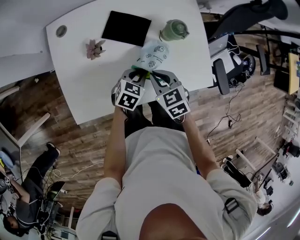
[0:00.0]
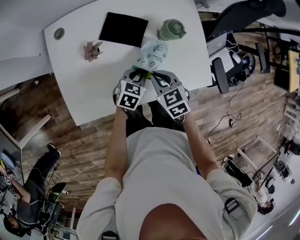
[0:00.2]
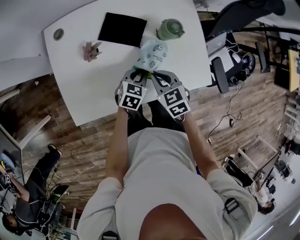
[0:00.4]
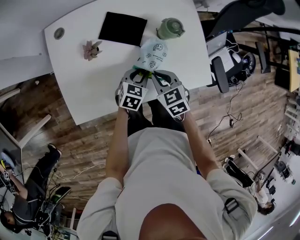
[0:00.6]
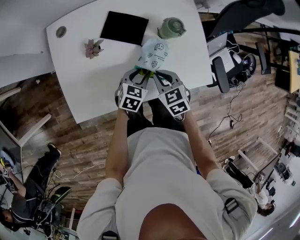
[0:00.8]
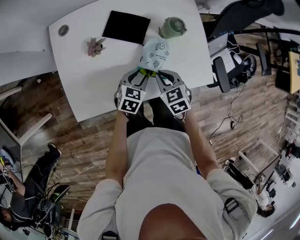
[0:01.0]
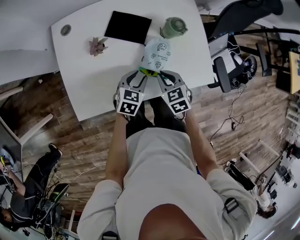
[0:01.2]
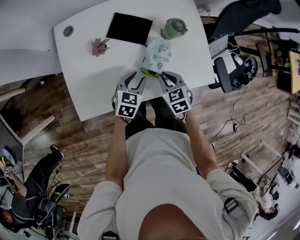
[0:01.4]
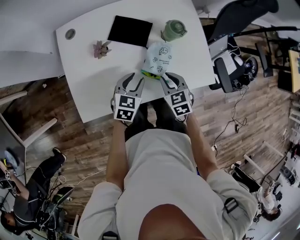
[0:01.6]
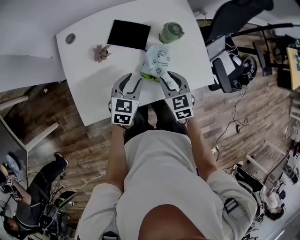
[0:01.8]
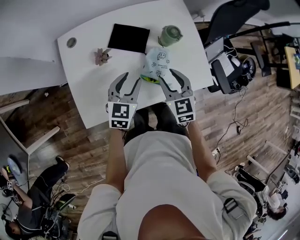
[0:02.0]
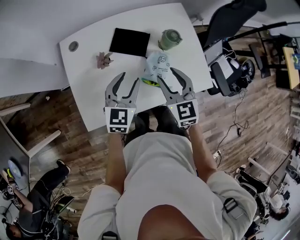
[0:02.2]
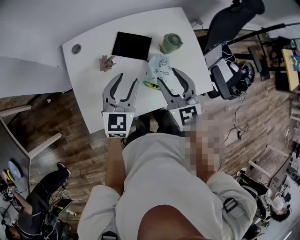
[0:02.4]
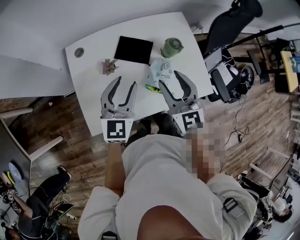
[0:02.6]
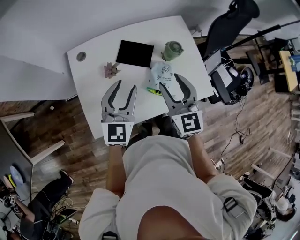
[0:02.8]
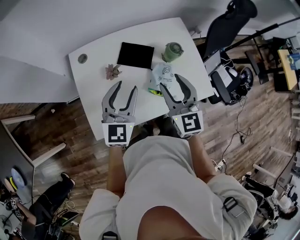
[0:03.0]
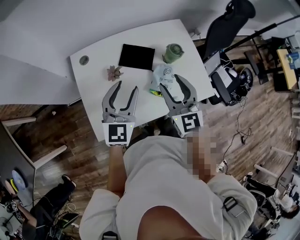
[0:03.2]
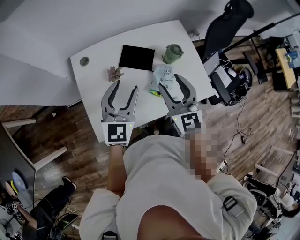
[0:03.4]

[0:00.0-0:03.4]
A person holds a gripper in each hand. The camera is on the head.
0:00.0 to 0:01.6: The right gripper moves some 5 cm. Meanwhile the left gripper moves about 5 cm, and opens its fingers.
0:01.6 to 0:03.4: The right gripper is displaced upward by roughly 25 cm, angles its fingers upward, by approximately 40 degrees, and opens, while the left gripper moves upward and to the left, approximately 25 cm, and points its fingers approximately 30 degrees further upward.

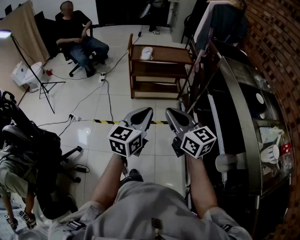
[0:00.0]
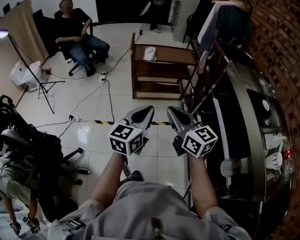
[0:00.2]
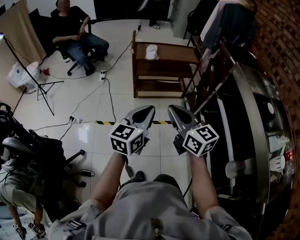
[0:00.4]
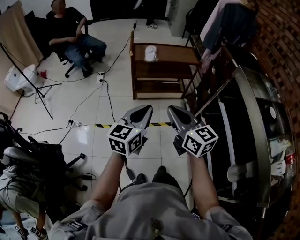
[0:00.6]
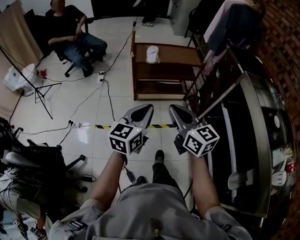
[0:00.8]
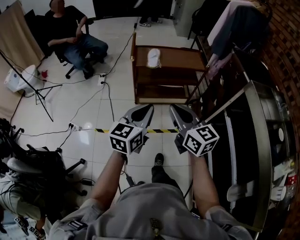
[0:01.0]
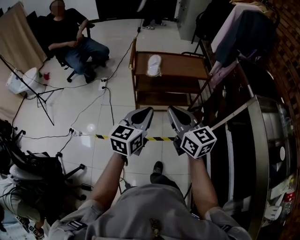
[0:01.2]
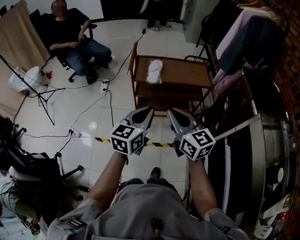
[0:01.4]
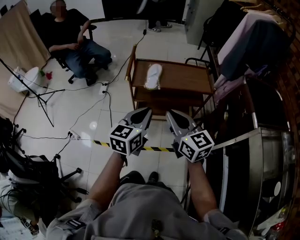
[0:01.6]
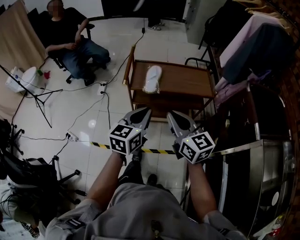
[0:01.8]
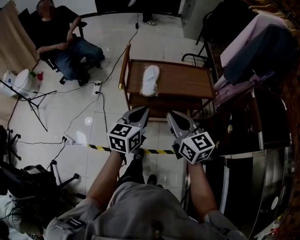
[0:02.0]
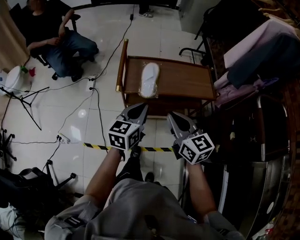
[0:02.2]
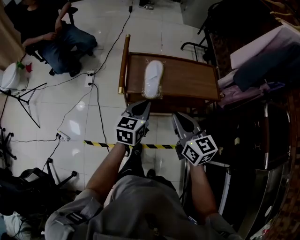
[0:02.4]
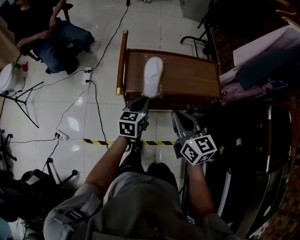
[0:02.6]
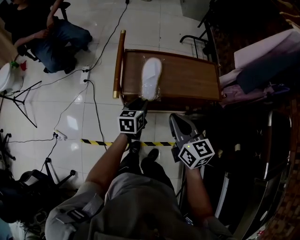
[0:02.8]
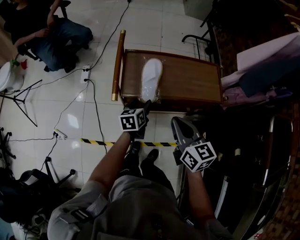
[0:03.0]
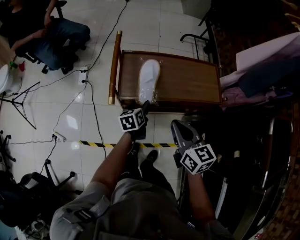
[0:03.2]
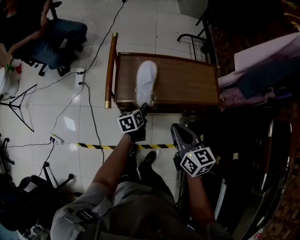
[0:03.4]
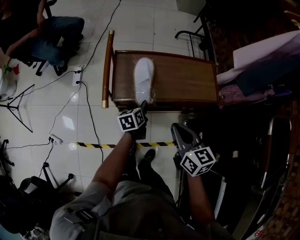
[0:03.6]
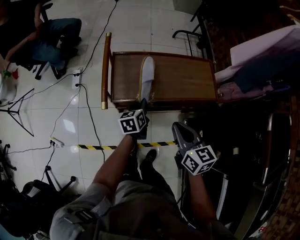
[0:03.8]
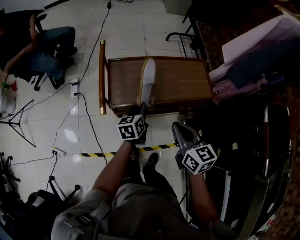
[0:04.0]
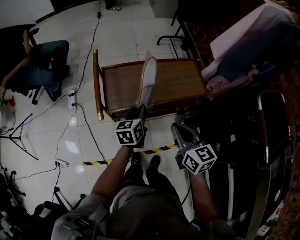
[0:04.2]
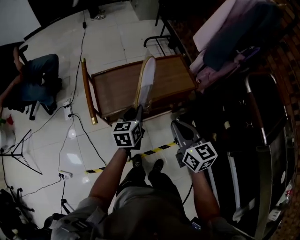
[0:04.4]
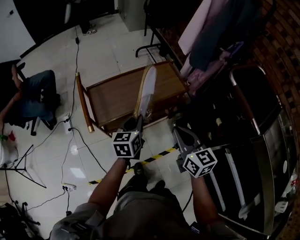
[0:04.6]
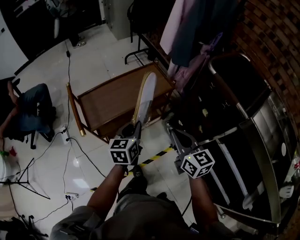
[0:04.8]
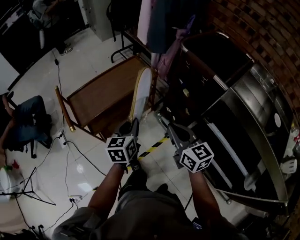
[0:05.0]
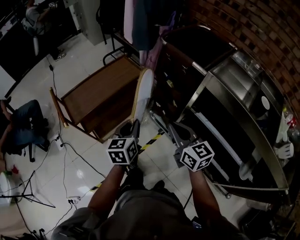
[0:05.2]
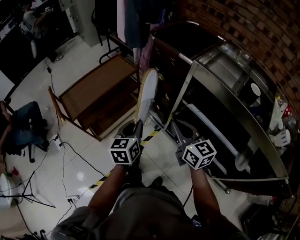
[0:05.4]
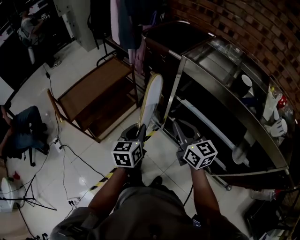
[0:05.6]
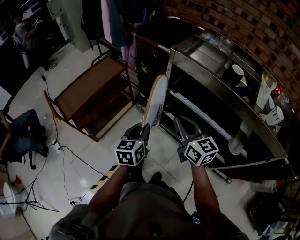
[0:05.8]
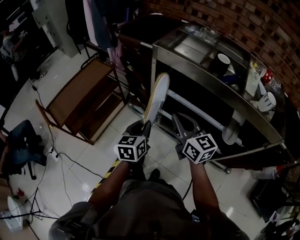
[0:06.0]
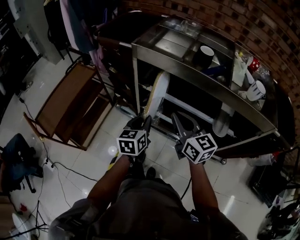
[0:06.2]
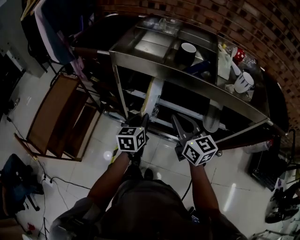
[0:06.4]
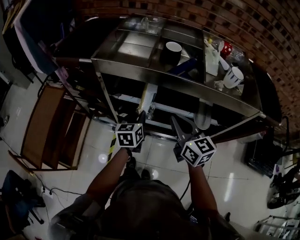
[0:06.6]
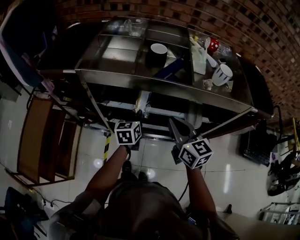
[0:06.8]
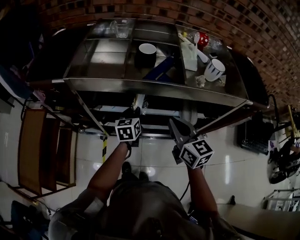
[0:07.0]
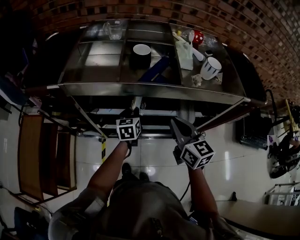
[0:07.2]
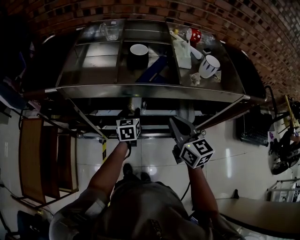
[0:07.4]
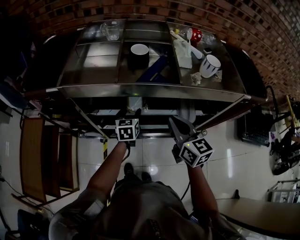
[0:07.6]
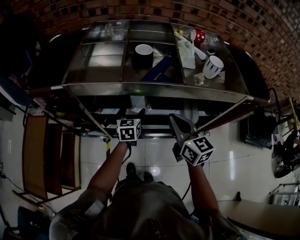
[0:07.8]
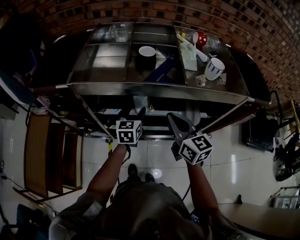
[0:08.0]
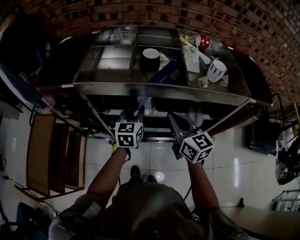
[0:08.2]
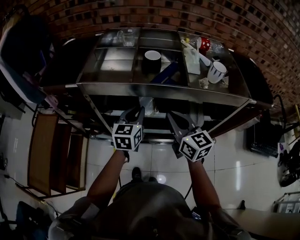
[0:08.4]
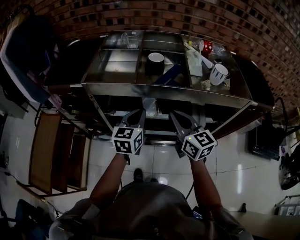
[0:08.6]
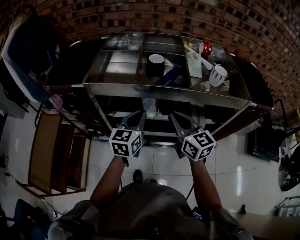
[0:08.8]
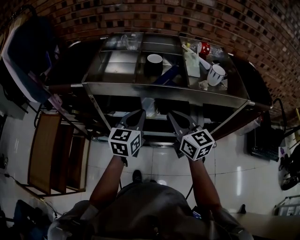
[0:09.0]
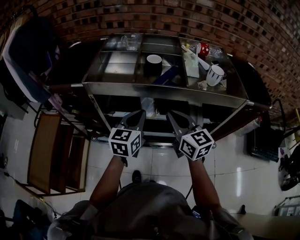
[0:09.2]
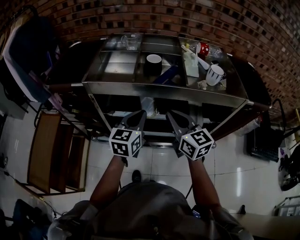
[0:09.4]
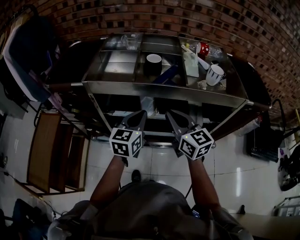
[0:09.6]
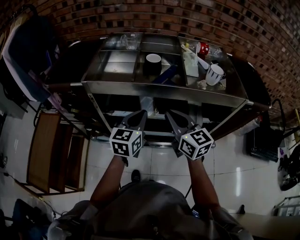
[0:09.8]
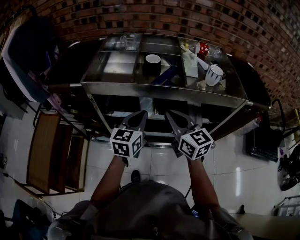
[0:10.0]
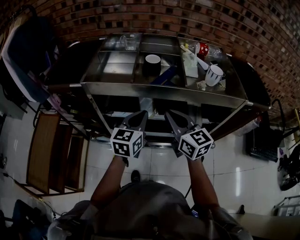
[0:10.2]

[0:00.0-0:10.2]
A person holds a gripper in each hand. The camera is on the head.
0:00.0 to 0:01.4: Both grippers travel together forward, approximately 35 cm.
0:01.4 to 0:03.0: Both grippers travel together forward and downward, about 35 cm. The left gripper changes its angle by roughly 30 degrees, and opens its fingers.
0:03.0 to 0:04.4: The left gripper goes roughly 15 cm upward and to the right, changes its angle by some 20 degrees, and closes its fingers. Meanwhile the right gripper heads to the right, covering approximately 10 cm.
0:04.4 to 0:05.8: The pair of grippers is taken roughly 50 cm. The right gripper turns by approximately 30 degrees. The left gripper changes its angle by about 40 degrees.
0:05.8 to 0:07.2: The left gripper shifts by roughly 35 cm, and rotates about 30 degrees. Meanwhile the right gripper shifts by approximately 25 cm, and changes its angle by about 40 degrees.
0:07.2 to 0:08.8: The right gripper moves to the left, approximately 5 cm, while the left gripper is displaced upward and backward by about 20 cm, and opens, then closes once more.
0:08.8 to 0:10.2: There are only small adjustments of the grippers.

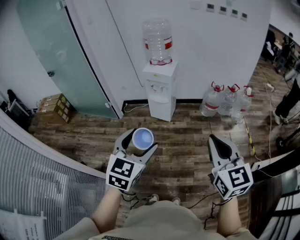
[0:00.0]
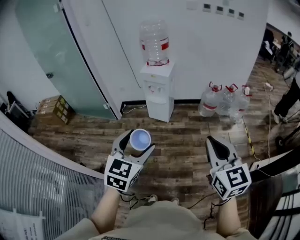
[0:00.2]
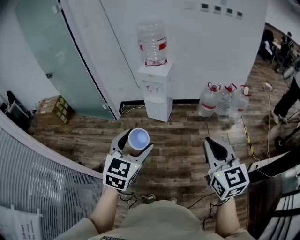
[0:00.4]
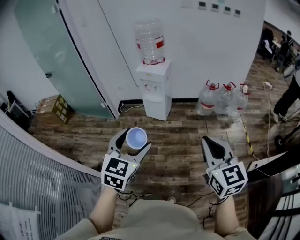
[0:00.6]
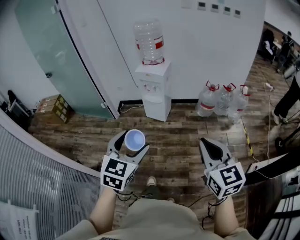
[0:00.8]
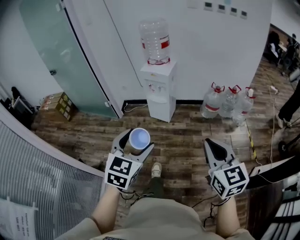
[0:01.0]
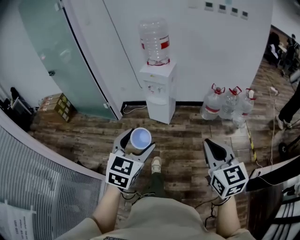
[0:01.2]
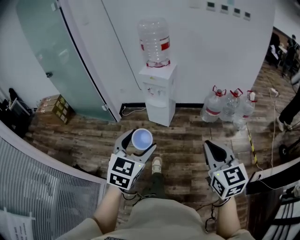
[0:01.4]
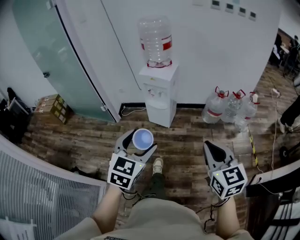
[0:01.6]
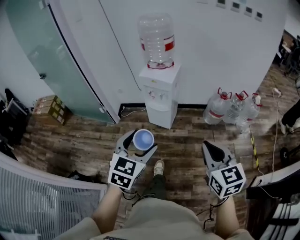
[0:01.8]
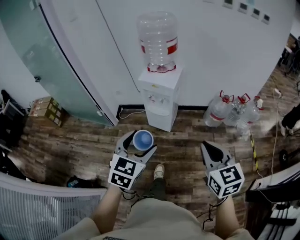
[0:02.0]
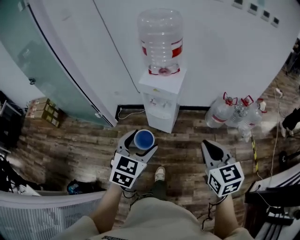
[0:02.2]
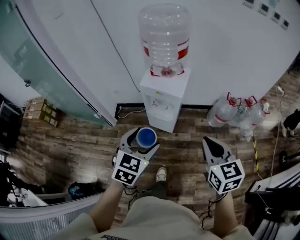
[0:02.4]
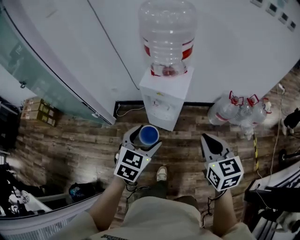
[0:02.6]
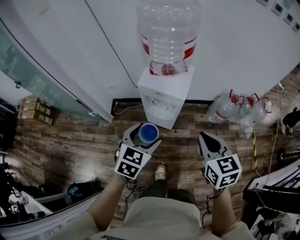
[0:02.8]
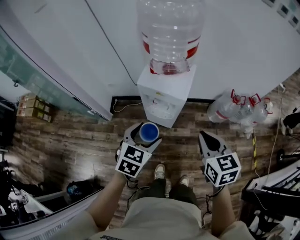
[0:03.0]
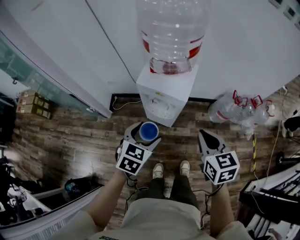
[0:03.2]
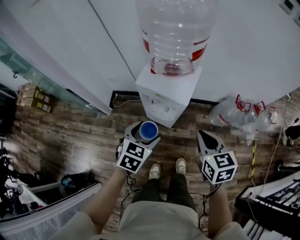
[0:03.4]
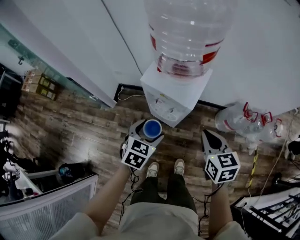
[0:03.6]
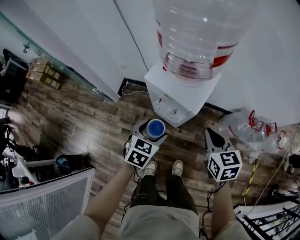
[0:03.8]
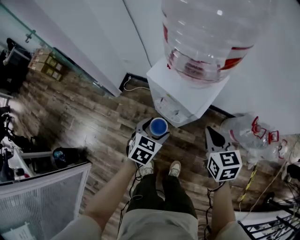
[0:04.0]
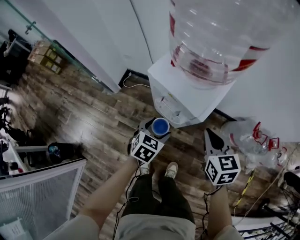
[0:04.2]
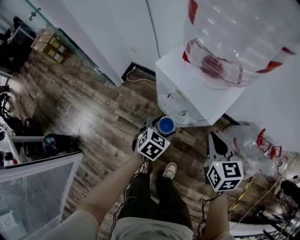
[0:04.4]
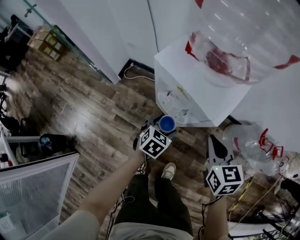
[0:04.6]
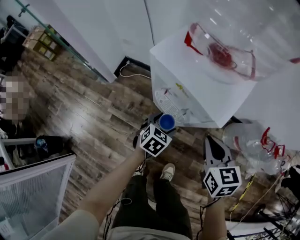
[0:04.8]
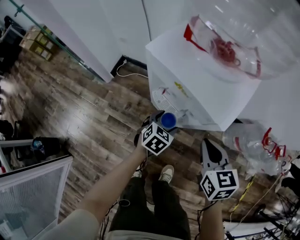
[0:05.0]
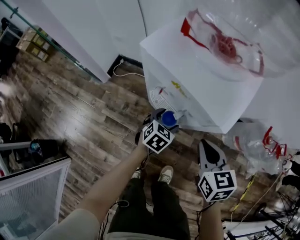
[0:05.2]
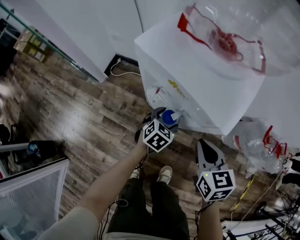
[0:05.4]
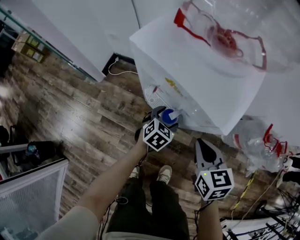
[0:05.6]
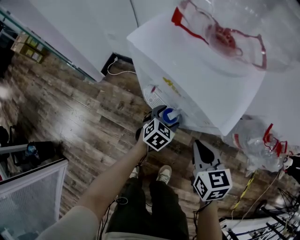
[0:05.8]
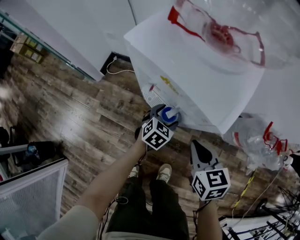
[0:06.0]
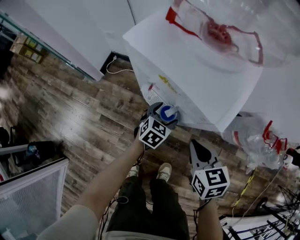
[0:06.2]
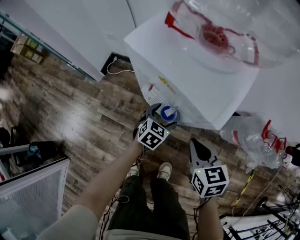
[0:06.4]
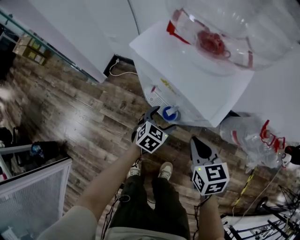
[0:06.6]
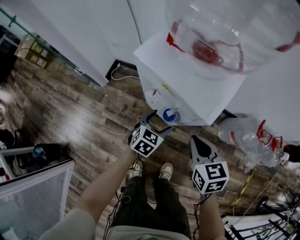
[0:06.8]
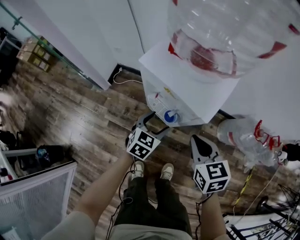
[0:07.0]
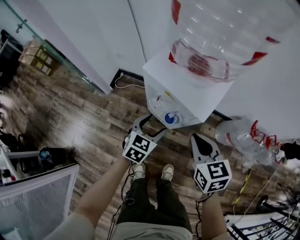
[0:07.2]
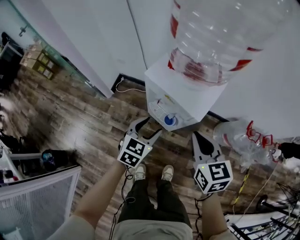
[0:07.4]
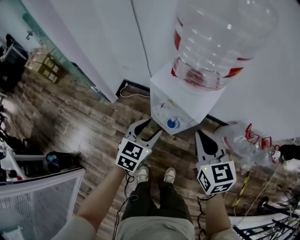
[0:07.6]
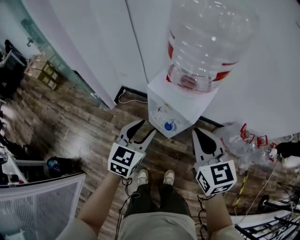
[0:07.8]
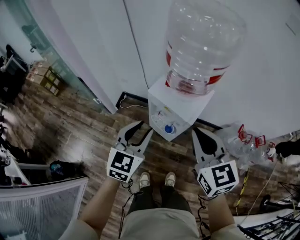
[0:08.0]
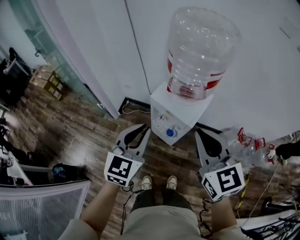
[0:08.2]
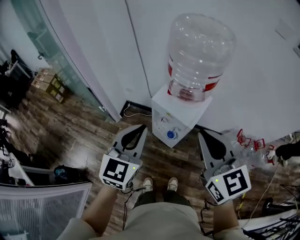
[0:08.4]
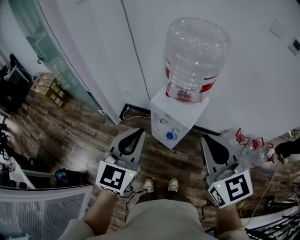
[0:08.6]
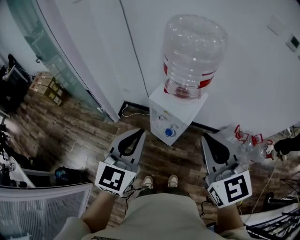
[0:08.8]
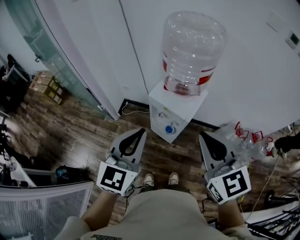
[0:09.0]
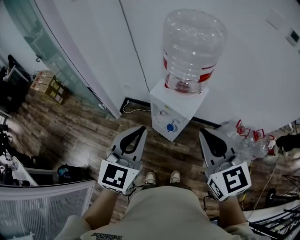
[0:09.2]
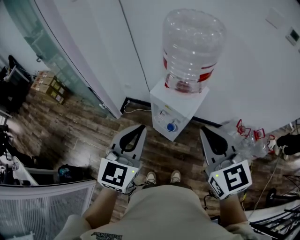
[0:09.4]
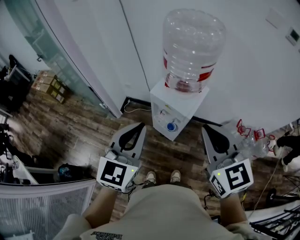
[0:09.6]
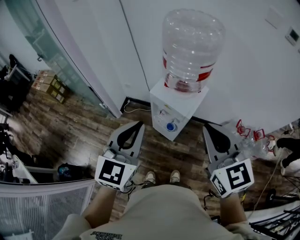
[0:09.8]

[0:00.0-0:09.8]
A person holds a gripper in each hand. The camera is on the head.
0:00.0 to 0:01.4: The left gripper heads forward, downward and to the right, covering about 10 cm. Meanwhile the right gripper travels downward, forward and to the right by about 10 cm.
0:01.4 to 0:02.8: The pair of grippers is taken forward, about 50 cm.
0:02.8 to 0:04.2: Both grippers move downward and forward, some 30 cm. The left gripper turns by roughly 20 degrees.
0:04.2 to 0:05.6: The grippers both shift downward by about 20 cm.
0:05.6 to 0:07.0: The grippers both shift upward by roughly 15 cm.
0:07.0 to 0:08.4: Both grippers travel together upward, roughly 40 cm. The left gripper rotates approximately 30 degrees, and closes up; the right gripper swivels about 30 degrees.
0:08.4 to 0:09.8: The left gripper moves about 5 cm.
